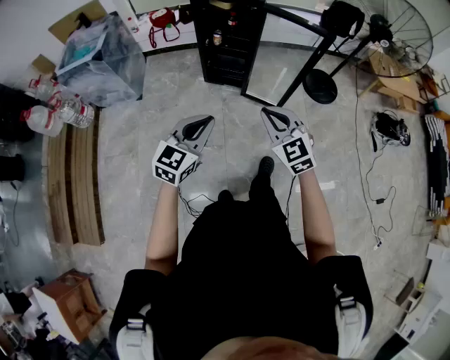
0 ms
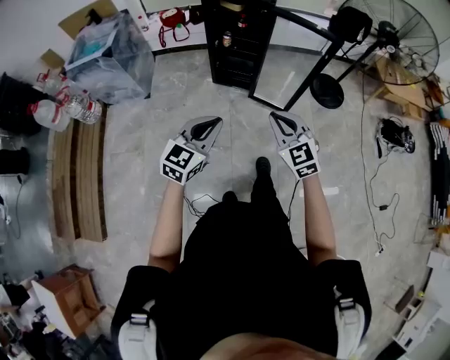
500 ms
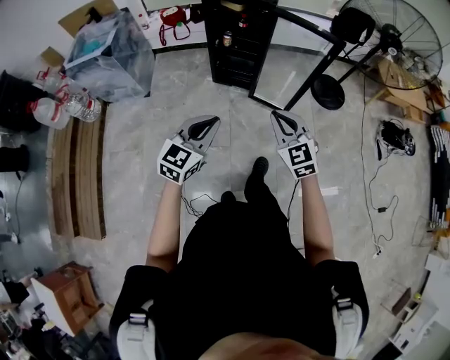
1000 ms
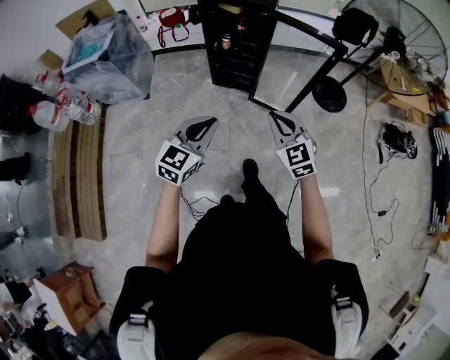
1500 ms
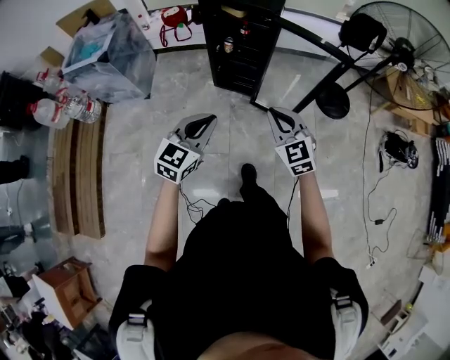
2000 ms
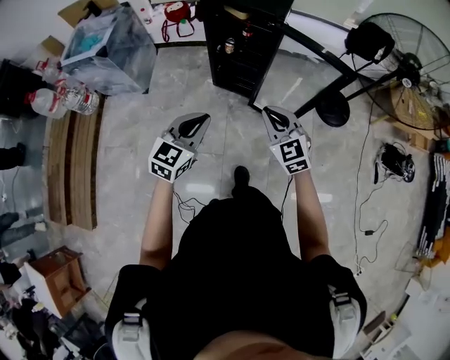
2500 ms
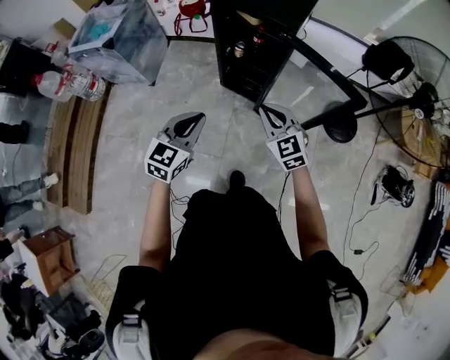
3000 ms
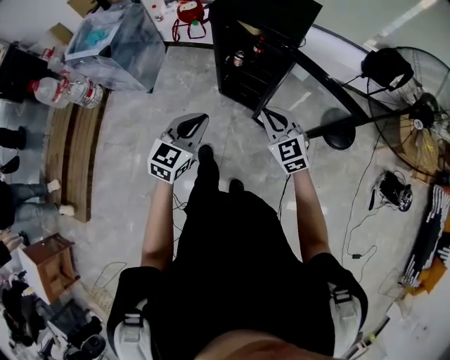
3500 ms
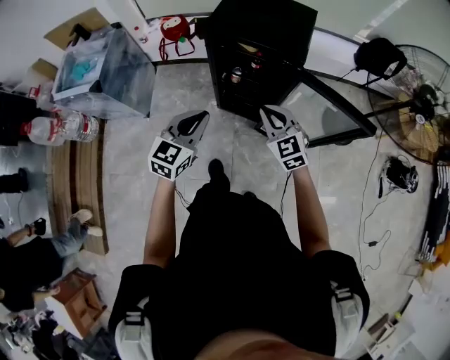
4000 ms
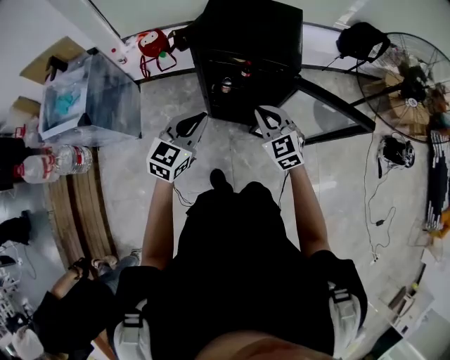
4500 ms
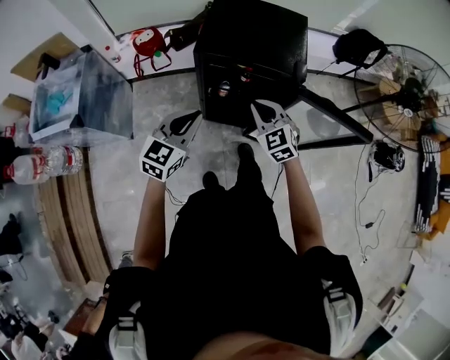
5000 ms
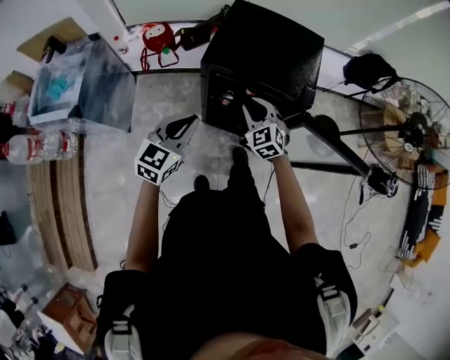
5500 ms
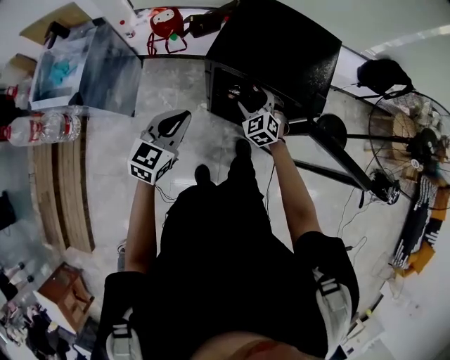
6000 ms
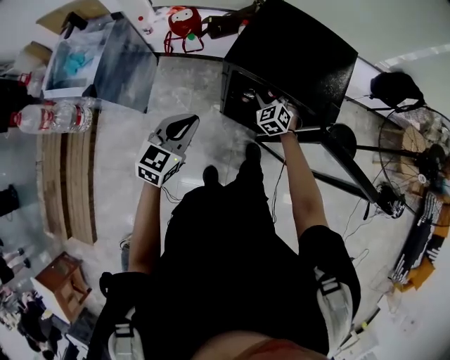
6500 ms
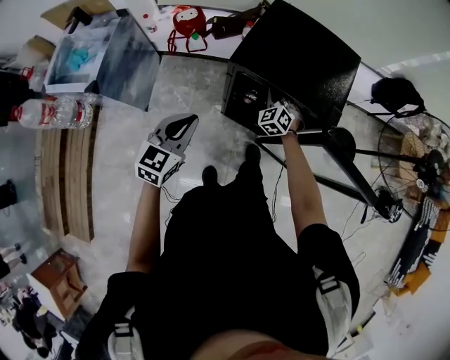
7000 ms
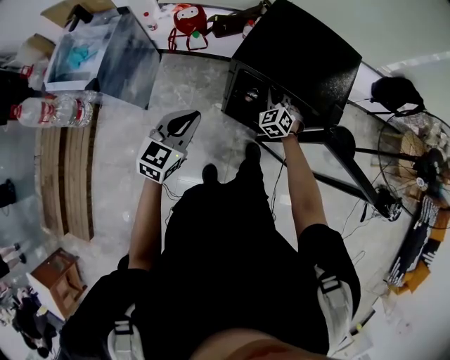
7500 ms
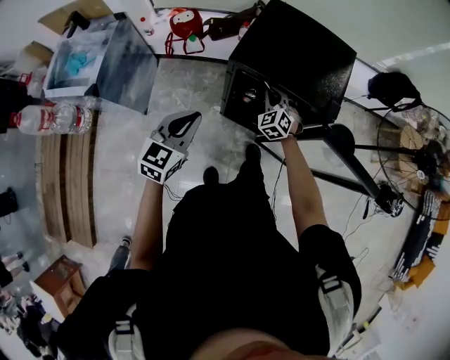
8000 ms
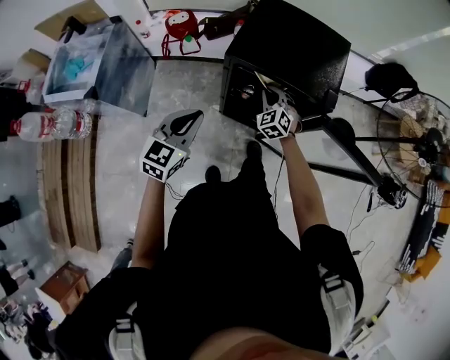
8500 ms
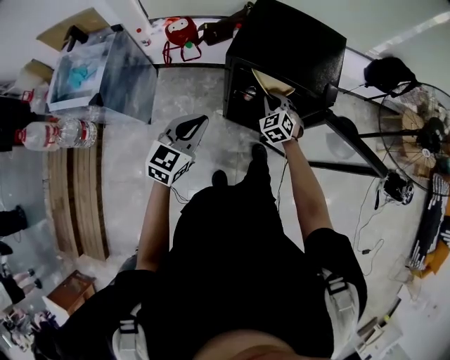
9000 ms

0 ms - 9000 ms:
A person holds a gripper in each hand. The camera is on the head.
0 ms - 2000 ms: Both grippers move forward, some 15 cm.
2000 ms - 4500 ms: Both grippers are carried forward, approximately 40 cm.
4500 ms - 7000 ms: The right gripper moves forward and downward, roughly 30 cm, turns by some 30 degrees, and opens, then closes again, while the left gripper travels to the left and forward by some 10 cm.
7000 ms - 9000 ms: The right gripper travels backward by some 10 cm.

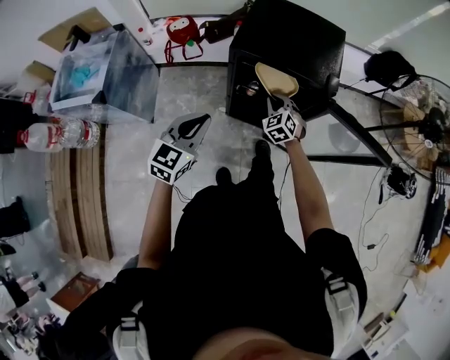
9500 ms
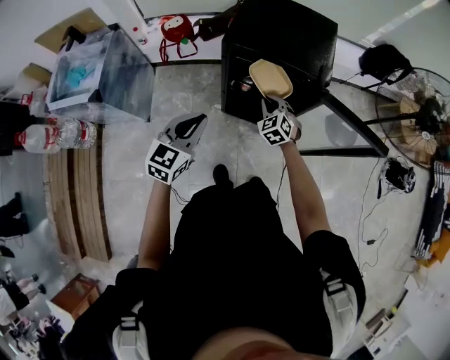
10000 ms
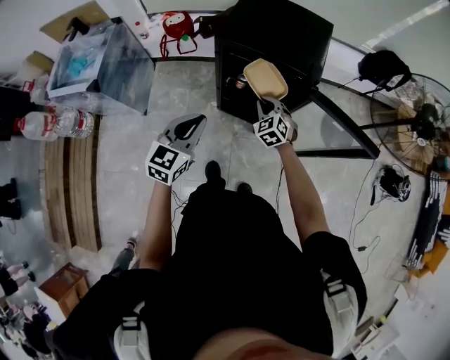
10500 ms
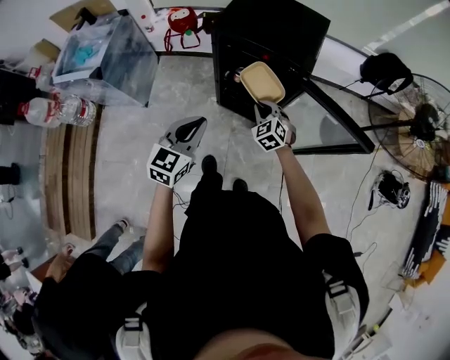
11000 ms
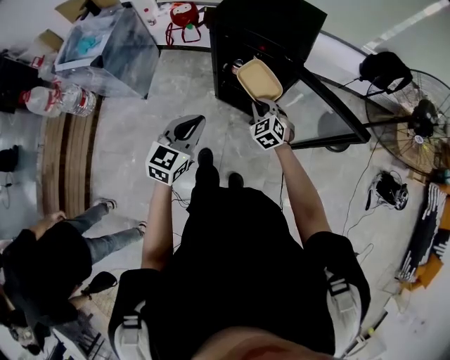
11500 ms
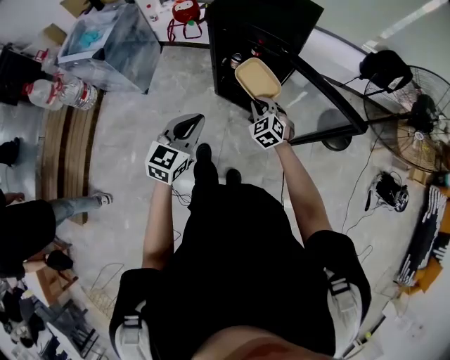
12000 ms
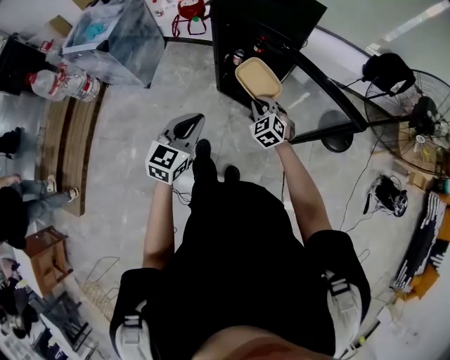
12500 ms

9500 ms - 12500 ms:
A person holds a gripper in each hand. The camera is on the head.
9500 ms - 11000 ms: The left gripper travels to the right and backward by about 15 cm, while the right gripper travels backward and to the right by approximately 15 cm.
11000 ms - 12500 ms: The left gripper heads backward and to the right, covering roughly 15 cm, while the right gripper moves backward, approximately 10 cm.

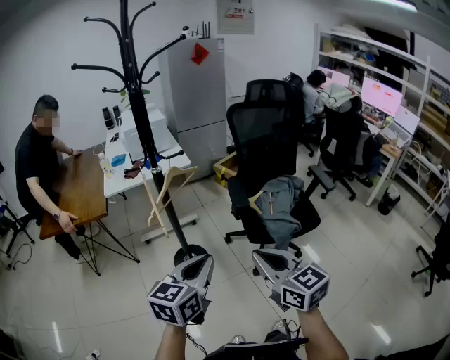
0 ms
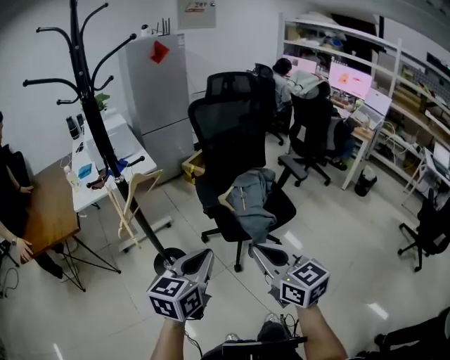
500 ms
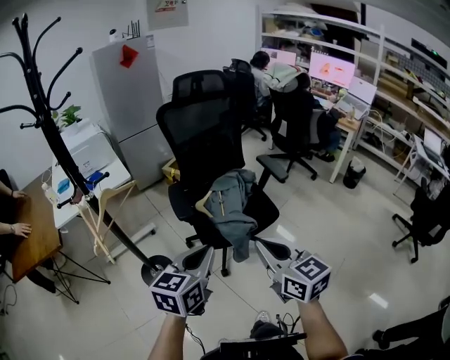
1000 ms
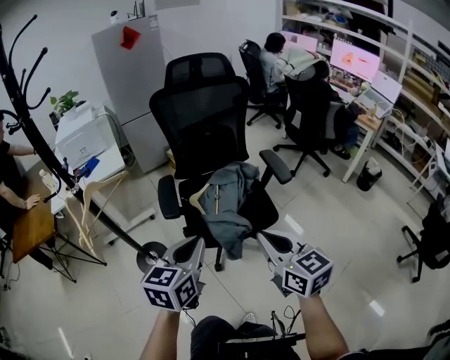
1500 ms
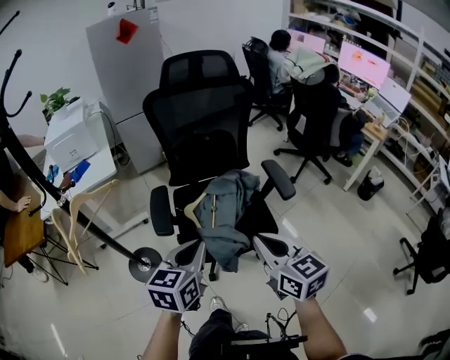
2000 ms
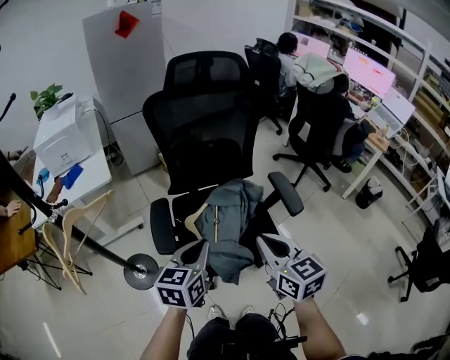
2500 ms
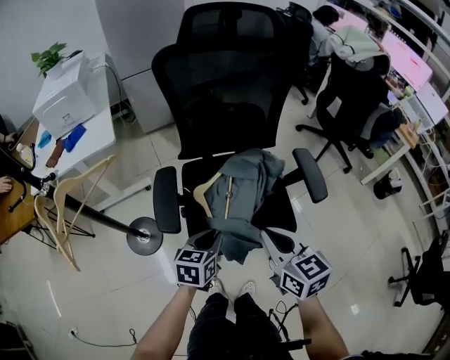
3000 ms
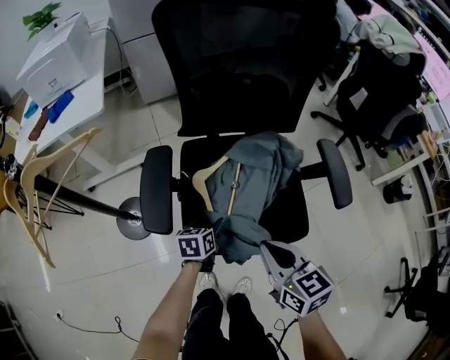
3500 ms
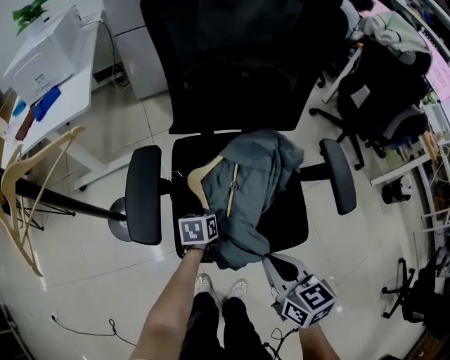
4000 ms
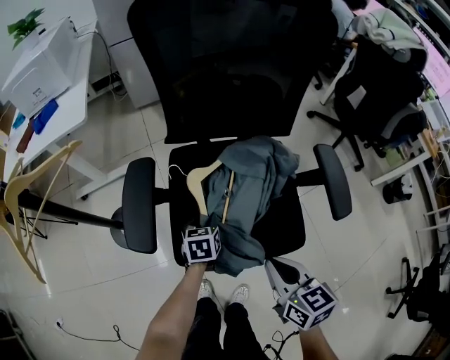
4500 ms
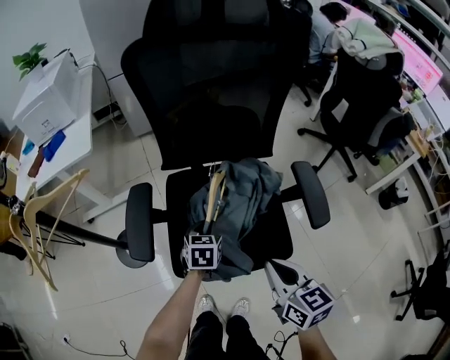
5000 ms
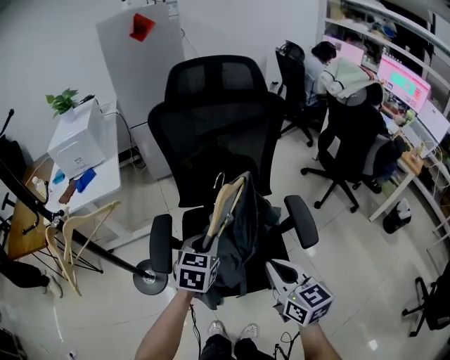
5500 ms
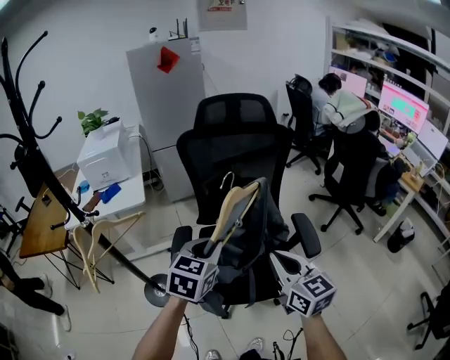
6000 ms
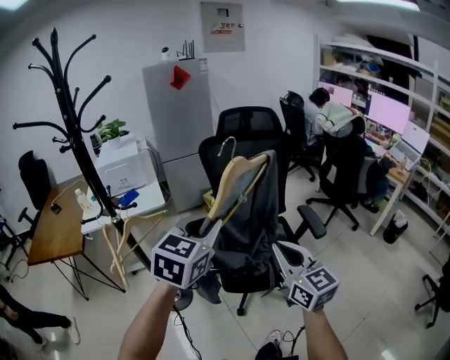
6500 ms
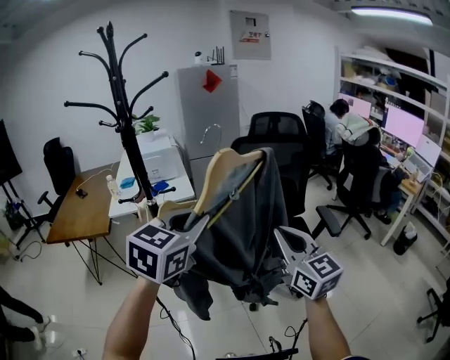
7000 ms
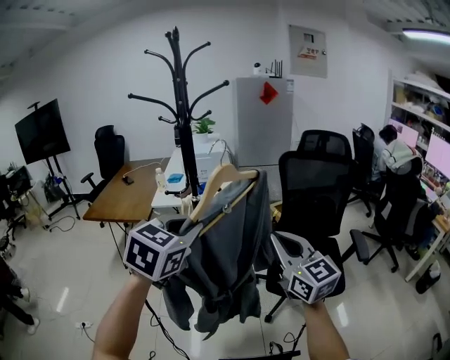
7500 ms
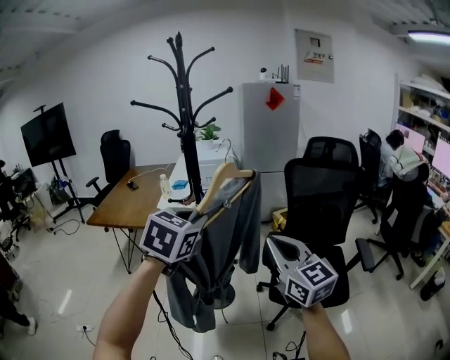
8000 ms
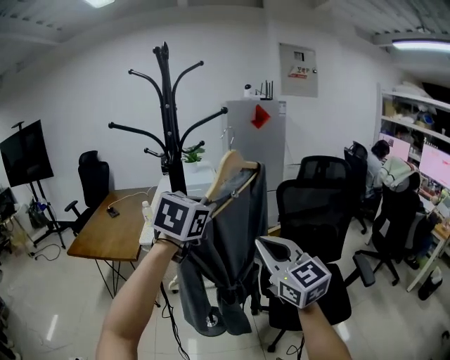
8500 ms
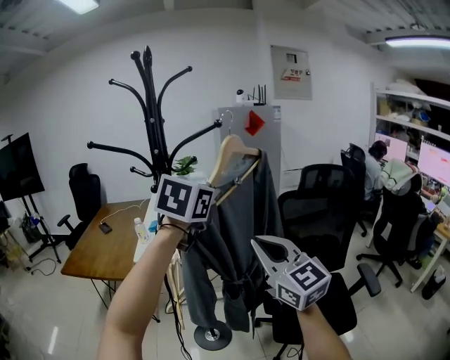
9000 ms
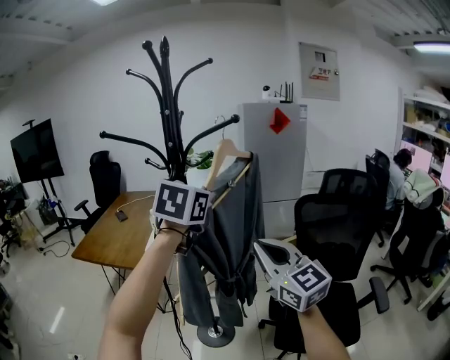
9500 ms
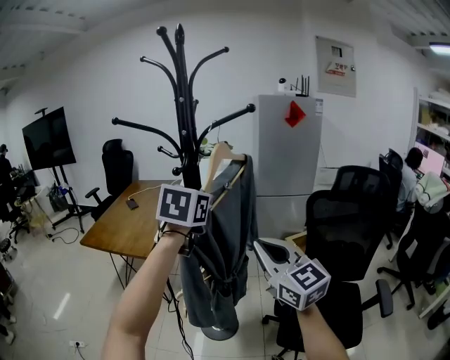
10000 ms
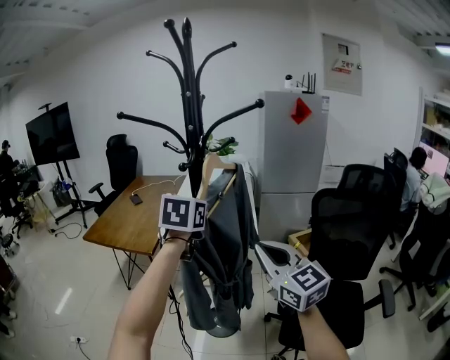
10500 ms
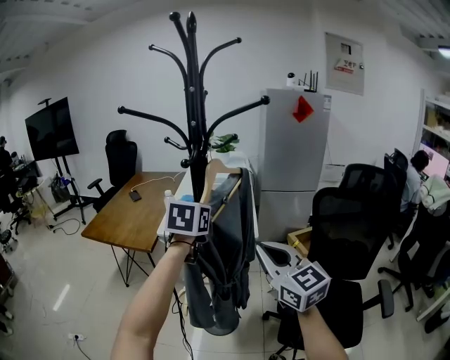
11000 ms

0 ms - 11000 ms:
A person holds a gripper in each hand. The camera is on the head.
0 ms - 2000 ms: The two grippers go roughly 35 cm to the right and forward.
2000 ms - 3500 ms: The right gripper goes some 20 cm downward and forward, while the left gripper shifts approximately 40 cm downward and forward, swivels some 30 degrees, and opens.
3500 ms - 5500 ms: The right gripper moves upward and to the right, some 15 cm, while the left gripper moves upward, some 30 cm, rotates about 40 degrees, and closes up.
5500 ms - 7500 ms: Both grippers travel together to the left, upward and backward, about 50 cm. The right gripper changes its angle by roughly 30 degrees.
7500 ms - 9000 ms: The right gripper heads forward and upward, covering about 20 cm; the left gripper moves forward and upward, roughly 30 cm.
9000 ms - 11000 ms: The right gripper travels downward and forward by some 10 cm. The left gripper moves downward, to the left and forward, approximately 20 cm, and changes its angle by roughly 30 degrees.

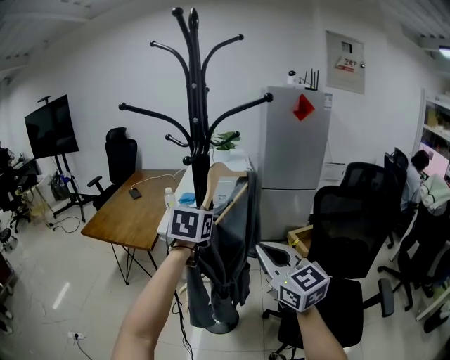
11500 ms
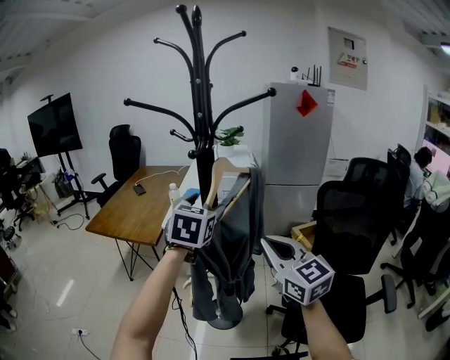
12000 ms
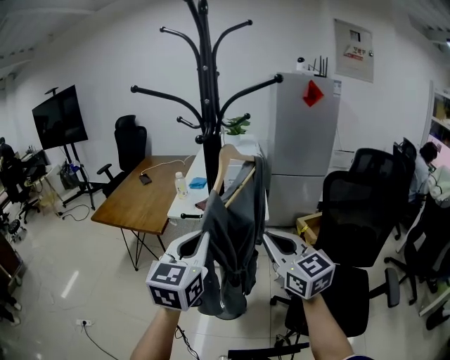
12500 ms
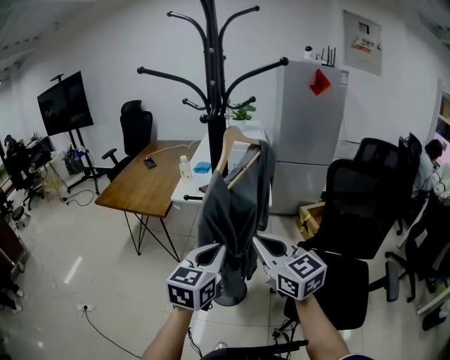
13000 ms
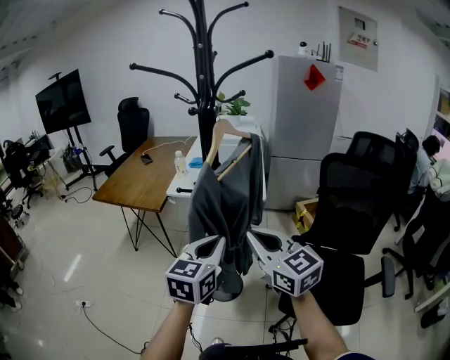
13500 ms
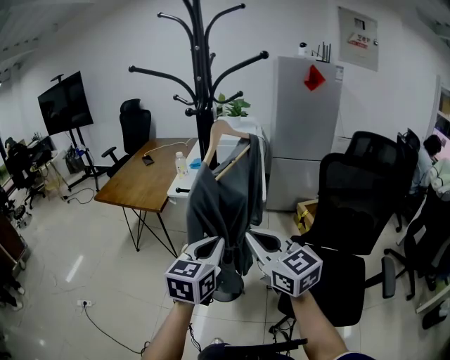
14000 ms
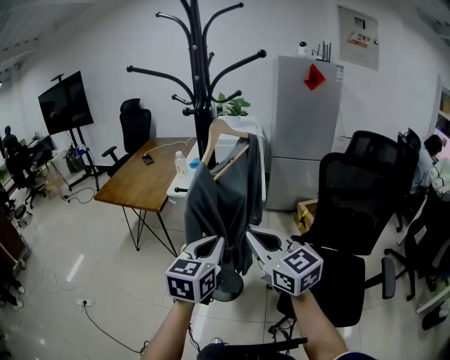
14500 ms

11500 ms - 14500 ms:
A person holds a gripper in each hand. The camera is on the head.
11500 ms - 13000 ms: The right gripper goes roughly 5 cm downward. Meanwhile the left gripper travels backward and downward by approximately 20 cm, and opens, then closes again.
13000 ms - 14500 ms: The grippers stay close to where they were, moving slightly.
